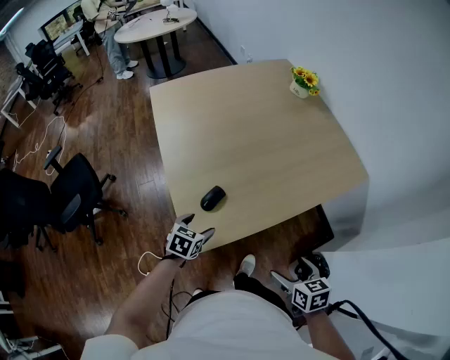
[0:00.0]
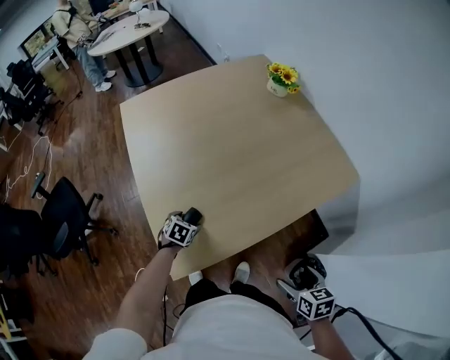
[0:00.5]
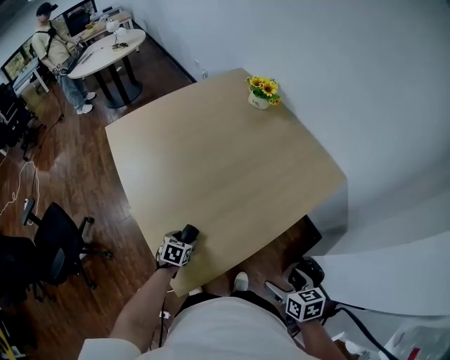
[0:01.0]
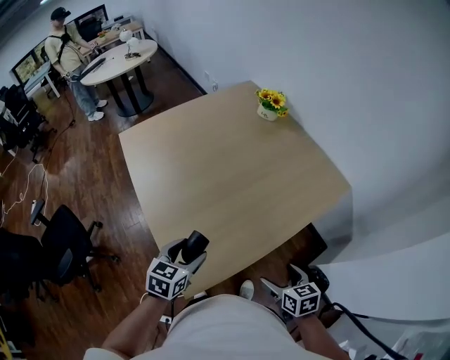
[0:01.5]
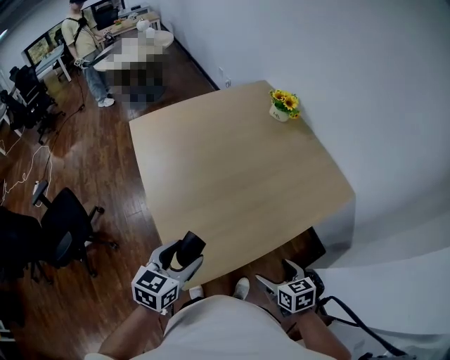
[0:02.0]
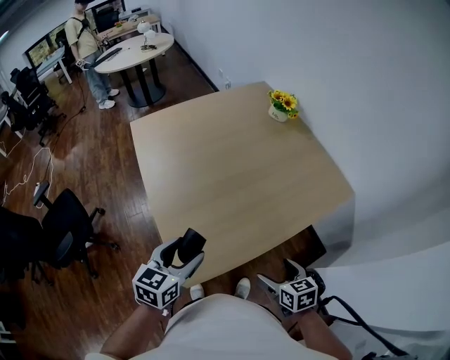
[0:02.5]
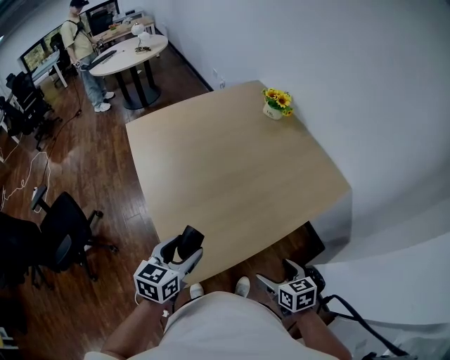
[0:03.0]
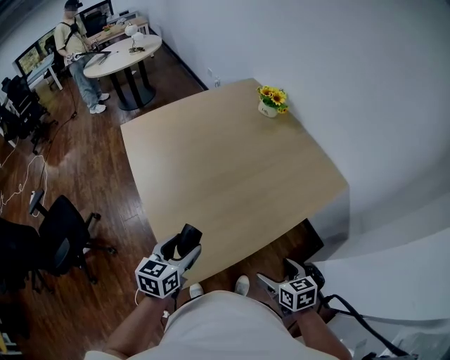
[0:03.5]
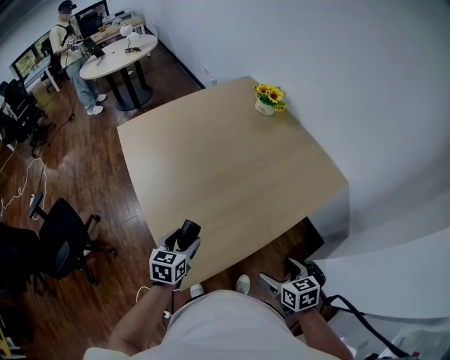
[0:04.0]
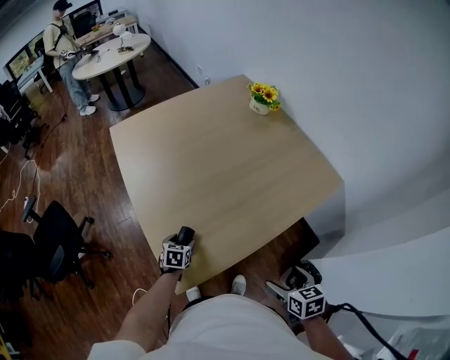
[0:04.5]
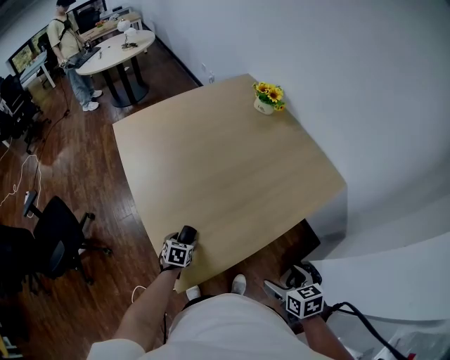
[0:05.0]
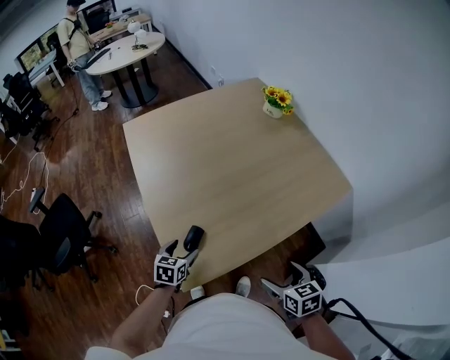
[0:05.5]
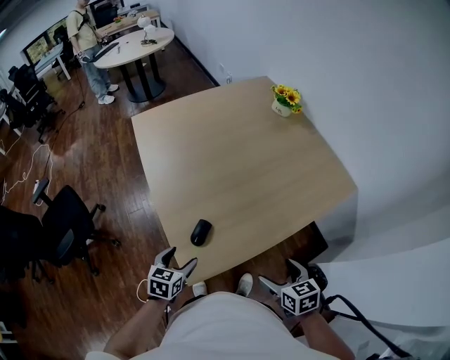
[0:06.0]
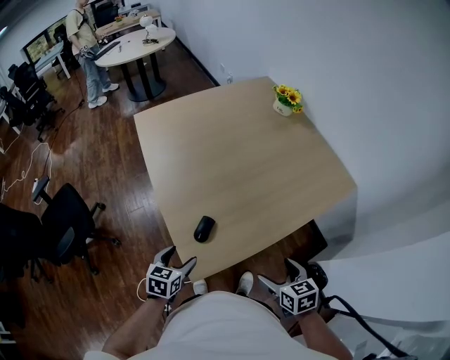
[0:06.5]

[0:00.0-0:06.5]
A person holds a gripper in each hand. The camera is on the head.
0:00.0 to 0:02.0: The right gripper is displaced forward by approximately 10 cm. Meanwhile the left gripper shifts some 20 cm upward, and changes its angle by roughly 20 degrees.
0:02.0 to 0:04.5: The left gripper heads downward, covering about 30 cm, and rotates roughly 30 degrees; the right gripper shifts some 5 cm to the right.
0:04.5 to 0:06.5: The right gripper shifts about 10 cm to the left; the left gripper moves upward, backward and to the left, roughly 20 cm.

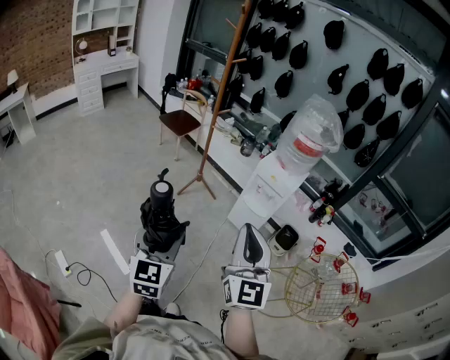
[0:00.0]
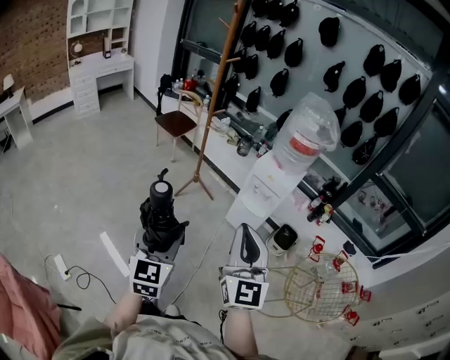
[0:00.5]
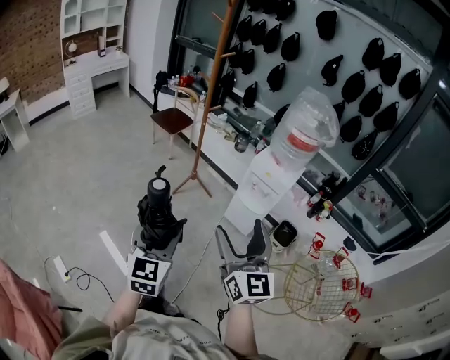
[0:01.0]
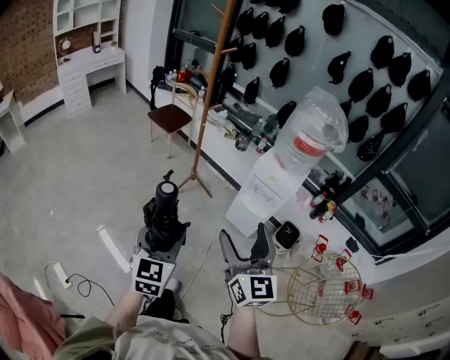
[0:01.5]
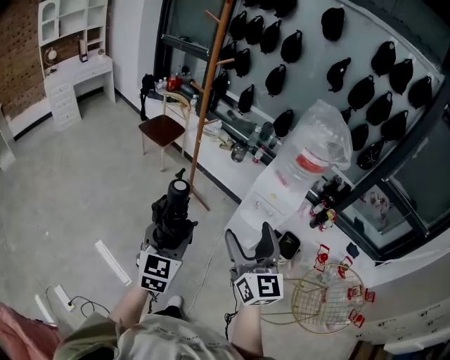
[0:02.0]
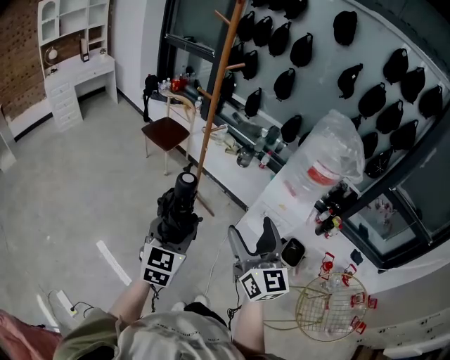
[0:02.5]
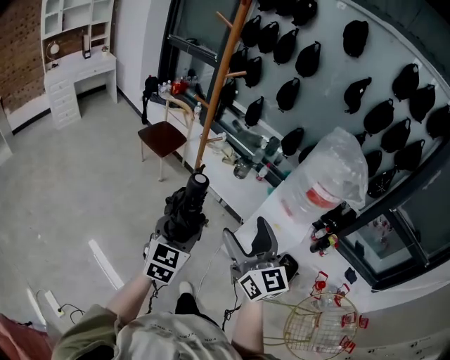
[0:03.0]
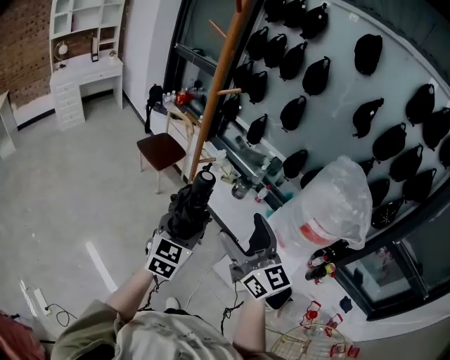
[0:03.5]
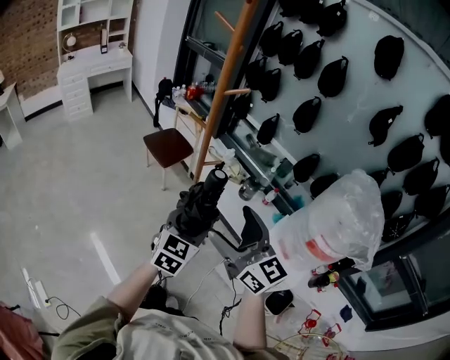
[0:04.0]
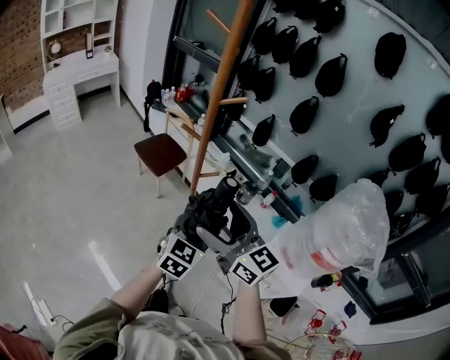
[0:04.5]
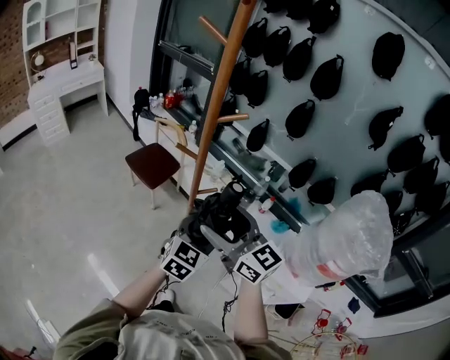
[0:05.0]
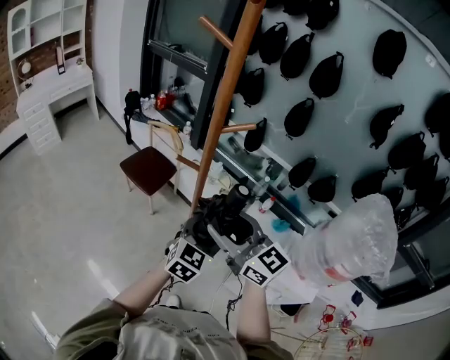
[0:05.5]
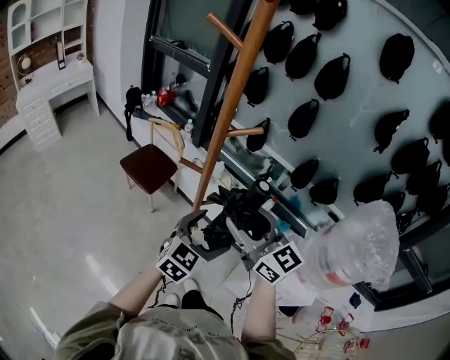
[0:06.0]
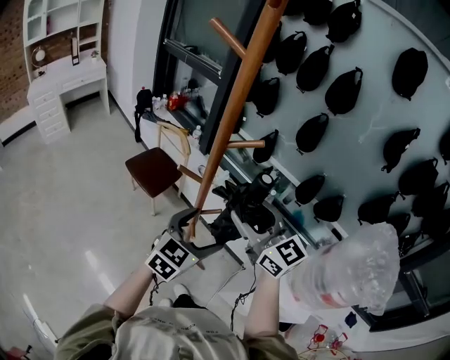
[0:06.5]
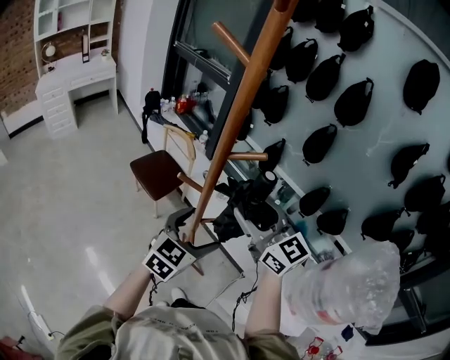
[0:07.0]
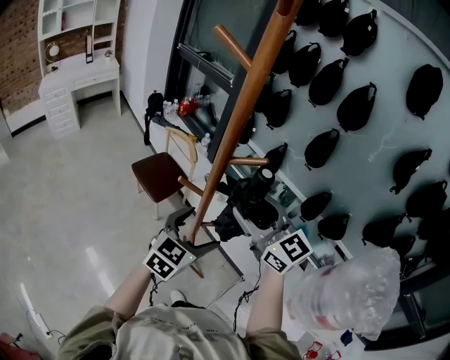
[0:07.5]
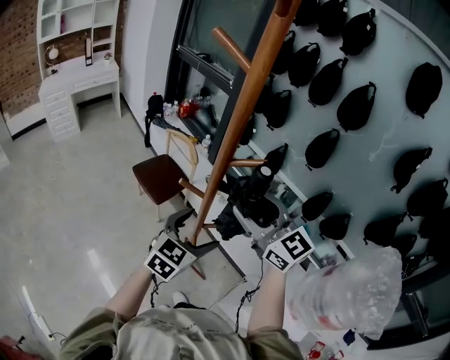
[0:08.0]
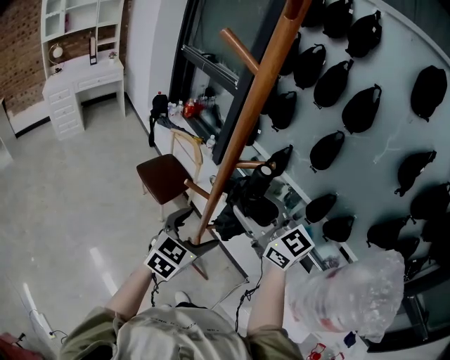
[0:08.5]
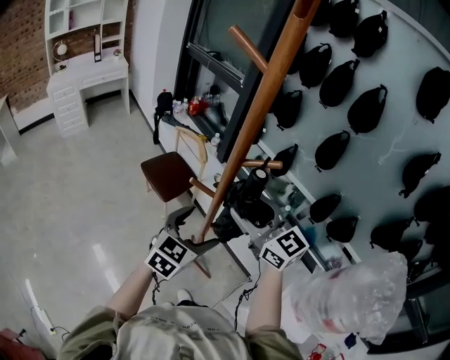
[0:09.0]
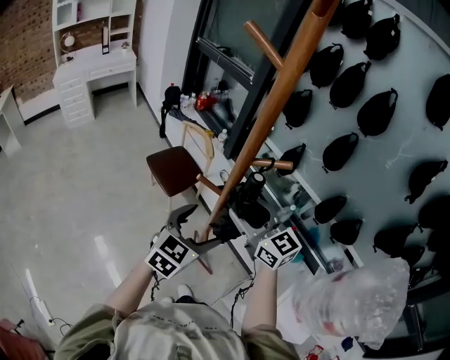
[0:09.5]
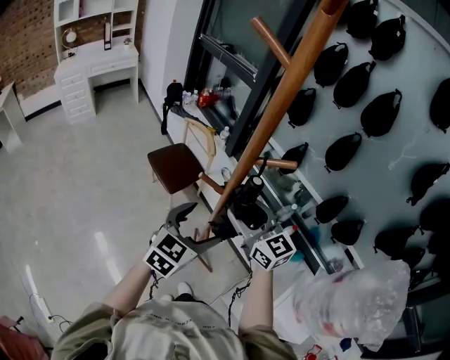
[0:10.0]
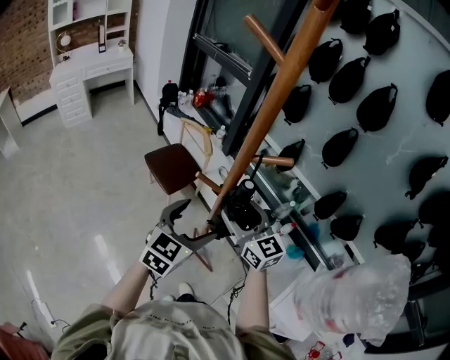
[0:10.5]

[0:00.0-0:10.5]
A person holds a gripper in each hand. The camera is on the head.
0:00.0 to 0:02.0: Both grippers travel together forward, about 25 cm. The right gripper opens its fingers.
0:02.0 to 0:04.0: Both grippers travel together forward, some 35 cm. The right gripper turns by roughly 40 degrees.
0:04.0 to 0:06.5: Both grippers move forward, approximately 25 cm. The right gripper closes, while the left gripper opens its fingers.
0:06.5 to 0:08.5: The two grippers go approximately 5 cm forward.
0:08.5 to 0:10.5: The right gripper heads downward, covering roughly 10 cm.

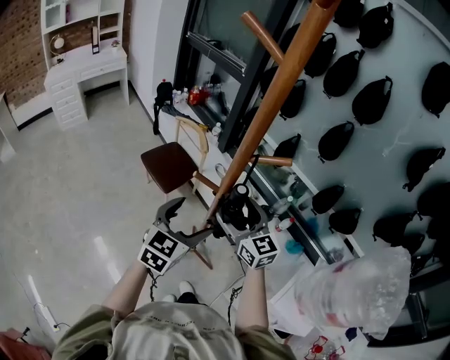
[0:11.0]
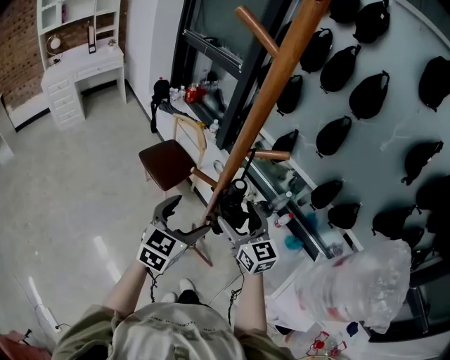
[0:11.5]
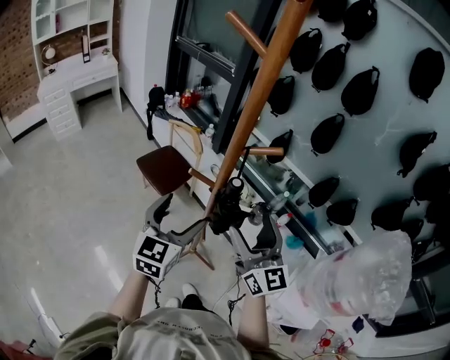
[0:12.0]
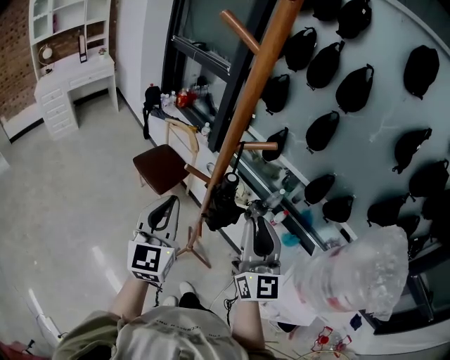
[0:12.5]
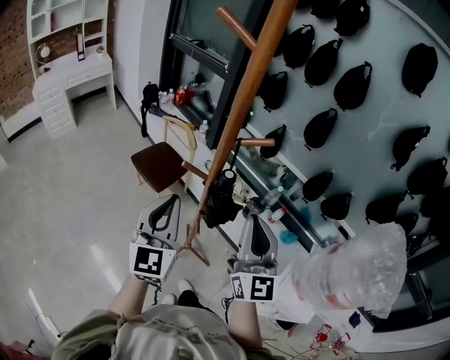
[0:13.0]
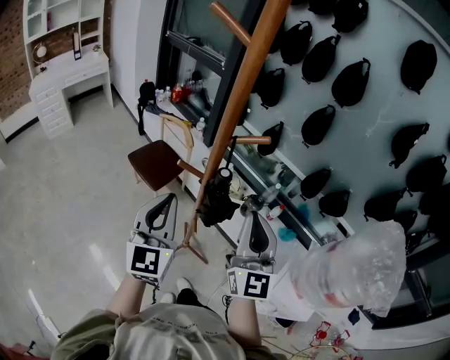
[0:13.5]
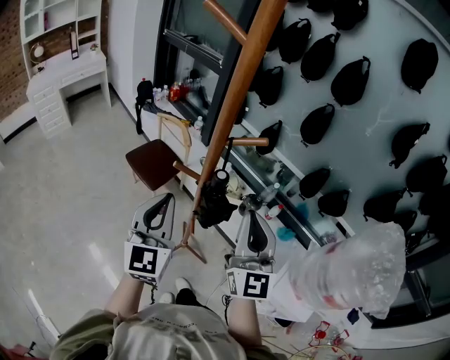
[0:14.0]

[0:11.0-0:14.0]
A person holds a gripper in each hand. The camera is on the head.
0:11.0 to 0:12.5: The right gripper travels backward, upward and to the right by roughly 15 cm, rotates roughly 30 degrees, and closes. The left gripper heads upward and to the left, covering some 10 cm, turns by about 30 degrees, and closes up.
0:12.5 to 0:14.0: There are only small adjustments of the grippers.

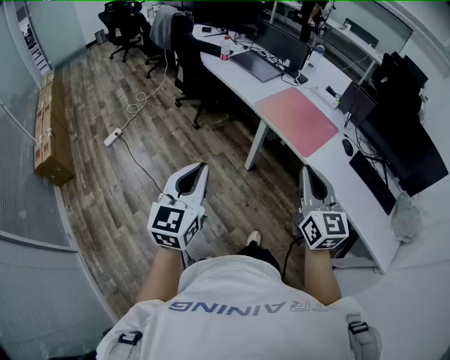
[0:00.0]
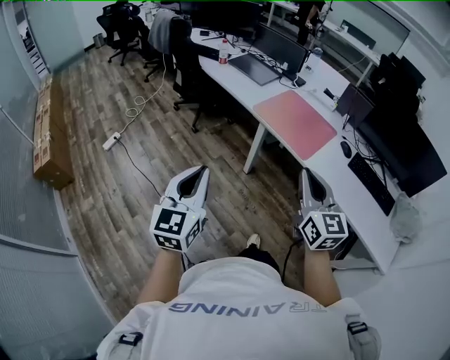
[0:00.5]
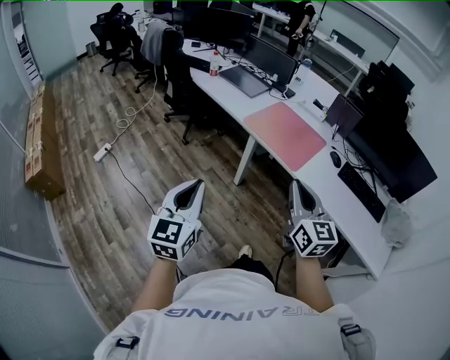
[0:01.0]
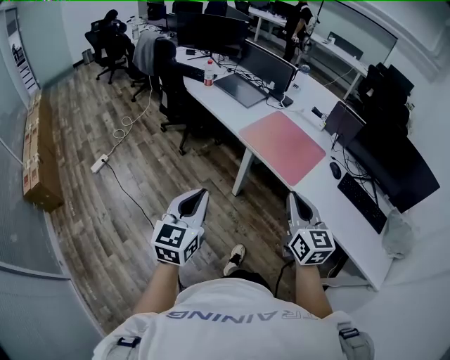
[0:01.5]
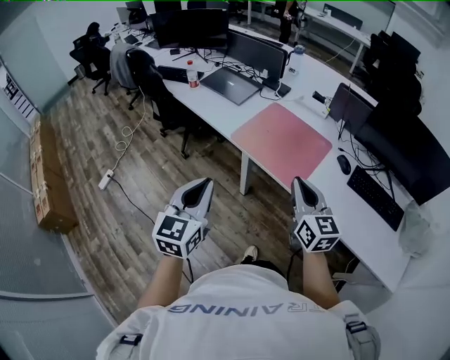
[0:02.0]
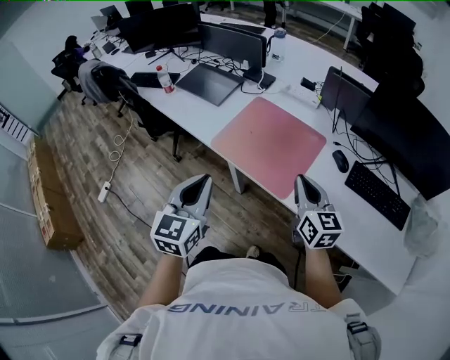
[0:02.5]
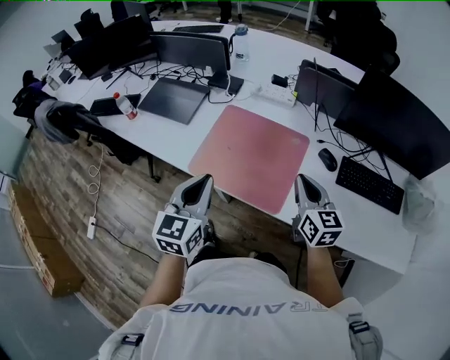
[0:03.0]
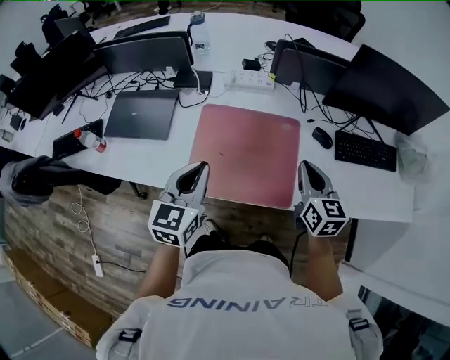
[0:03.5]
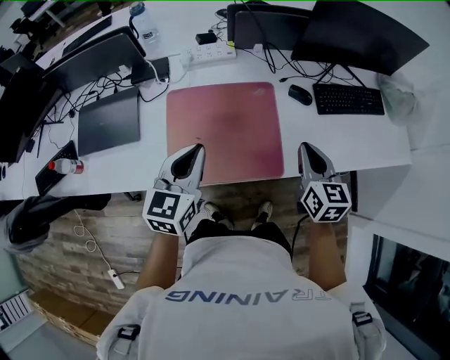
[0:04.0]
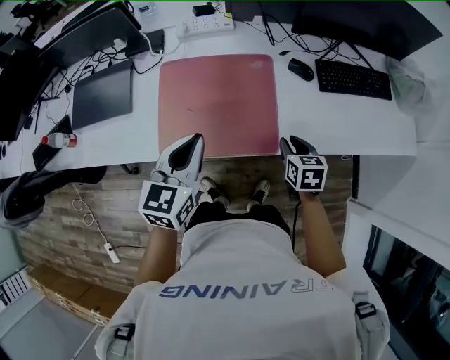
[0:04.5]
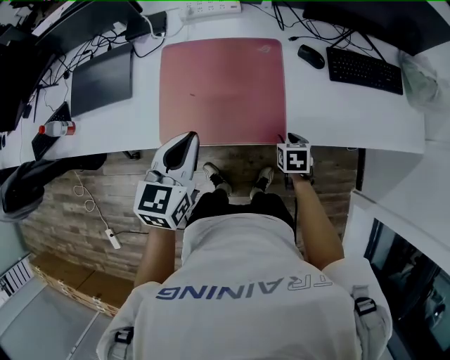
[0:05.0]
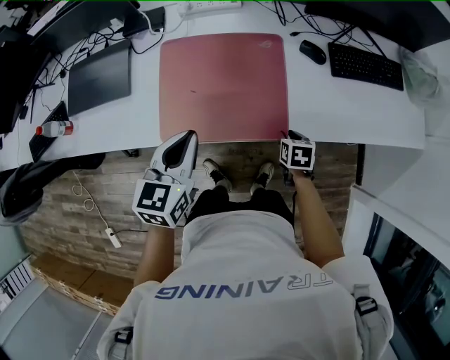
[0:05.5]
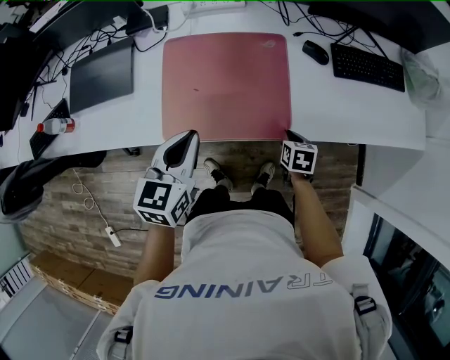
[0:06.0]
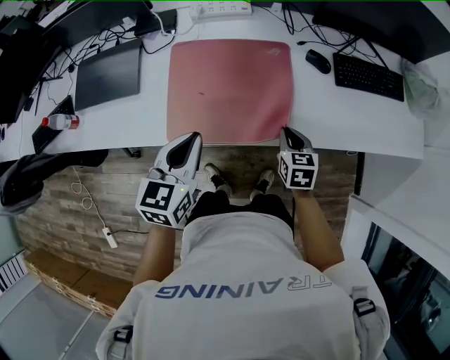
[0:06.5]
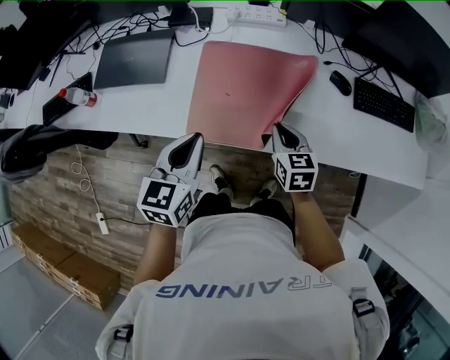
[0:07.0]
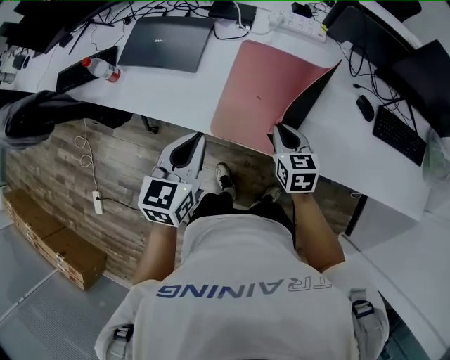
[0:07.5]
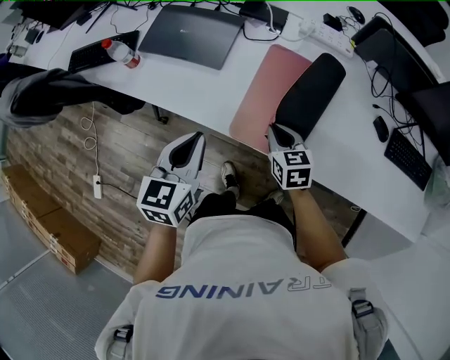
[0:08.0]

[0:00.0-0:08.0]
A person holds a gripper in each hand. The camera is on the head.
0:00.0 to 0:02.0: The grippers both shift forward and to the right by some 25 cm.
0:02.0 to 0:04.0: The right gripper ends up approximately 25 cm from where it was, and turns by about 50 degrees. Meanwhile the left gripper shifts by approximately 40 cm, and turns by roughly 50 degrees.
0:04.0 to 0:06.0: The left gripper goes approximately 10 cm backward and downward. Meanwhile the right gripper travels downward by approximately 25 cm, tips its fingers downward by approximately 40 degrees, and opens and closes again.
0:06.0 to 0:08.0: The left gripper shifts by some 20 cm, and turns by approximately 20 degrees, while the right gripper changes place by roughly 35 cm, and swivels approximately 40 degrees.
